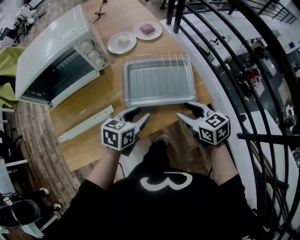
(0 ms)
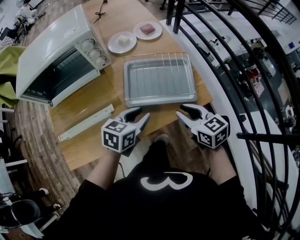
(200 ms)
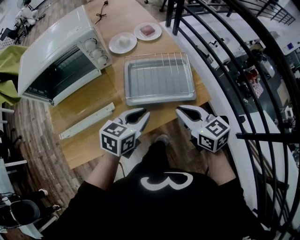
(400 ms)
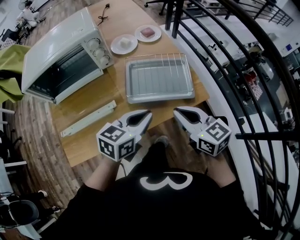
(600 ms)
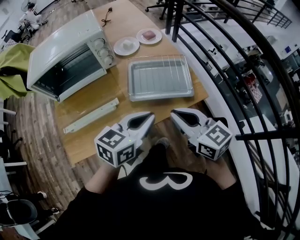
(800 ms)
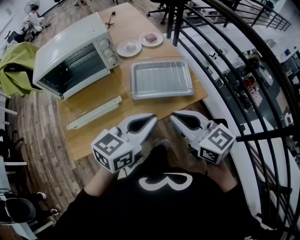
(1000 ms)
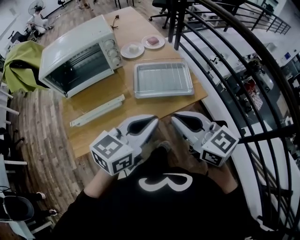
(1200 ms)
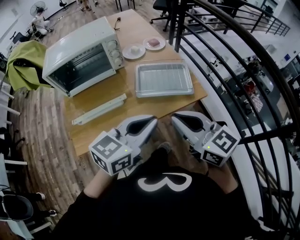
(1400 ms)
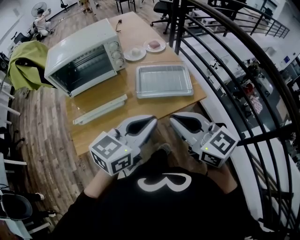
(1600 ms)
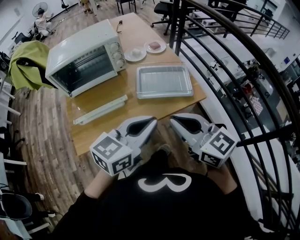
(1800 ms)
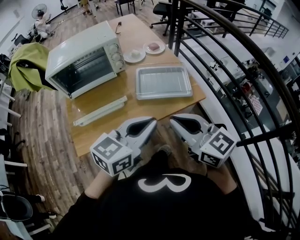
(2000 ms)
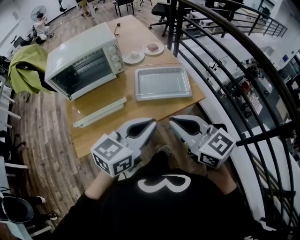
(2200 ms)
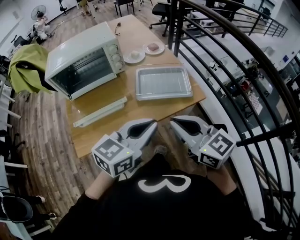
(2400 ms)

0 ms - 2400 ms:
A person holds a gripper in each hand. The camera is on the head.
0 ms - 1200 ms: Both grippers travel together upward and backward, about 25 cm. The left gripper swivels about 30 degrees, and closes; the right gripper turns by about 30 degrees, and closes up.
1200 ms - 2400 ms: The grippers stay close to where they were, moving slightly.

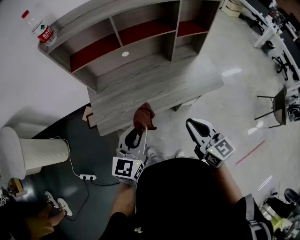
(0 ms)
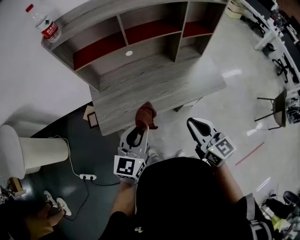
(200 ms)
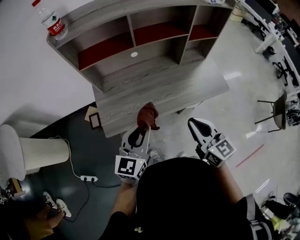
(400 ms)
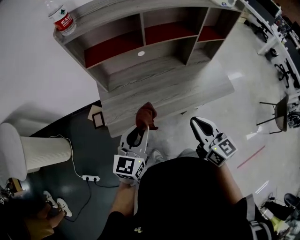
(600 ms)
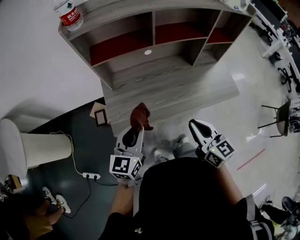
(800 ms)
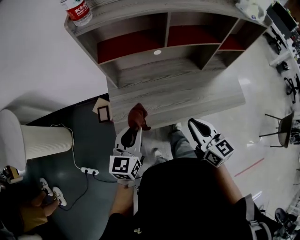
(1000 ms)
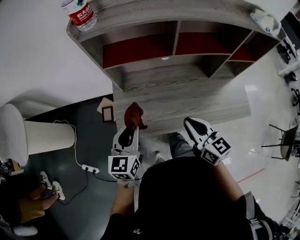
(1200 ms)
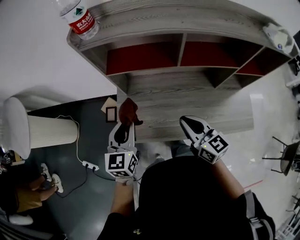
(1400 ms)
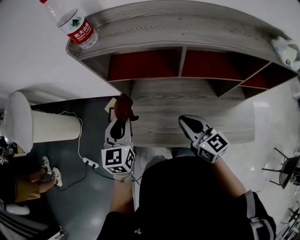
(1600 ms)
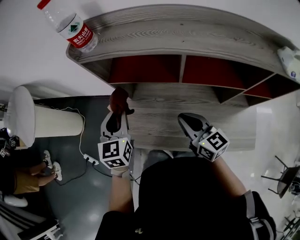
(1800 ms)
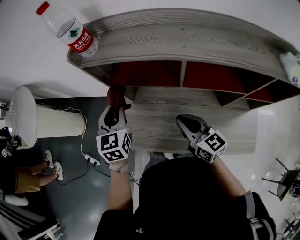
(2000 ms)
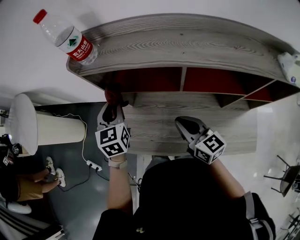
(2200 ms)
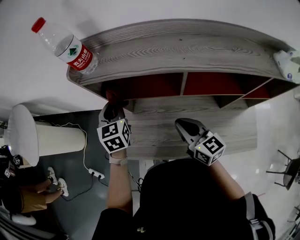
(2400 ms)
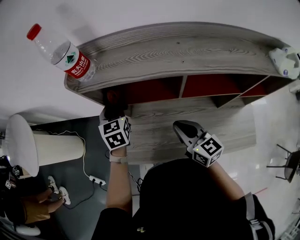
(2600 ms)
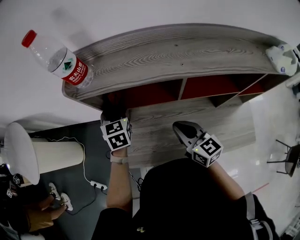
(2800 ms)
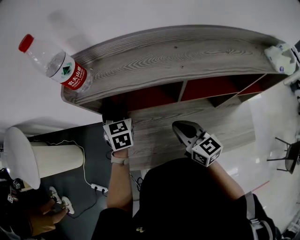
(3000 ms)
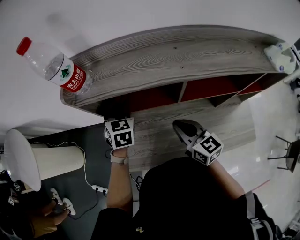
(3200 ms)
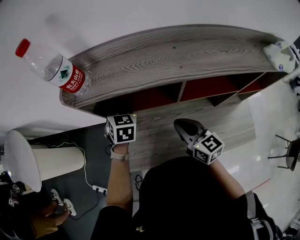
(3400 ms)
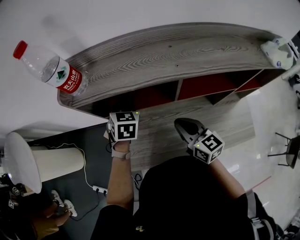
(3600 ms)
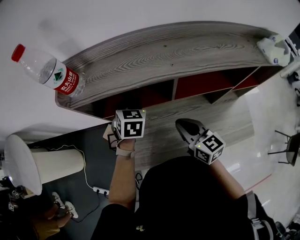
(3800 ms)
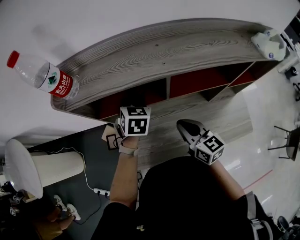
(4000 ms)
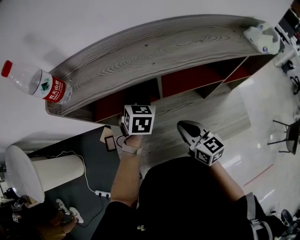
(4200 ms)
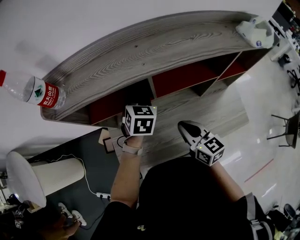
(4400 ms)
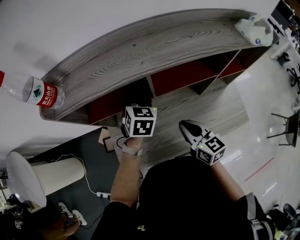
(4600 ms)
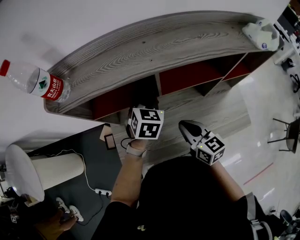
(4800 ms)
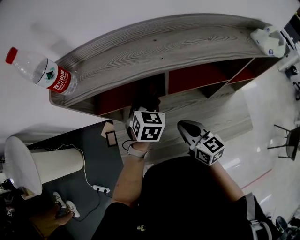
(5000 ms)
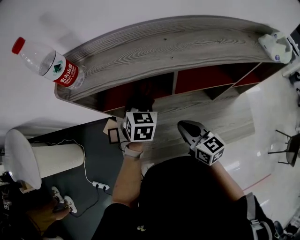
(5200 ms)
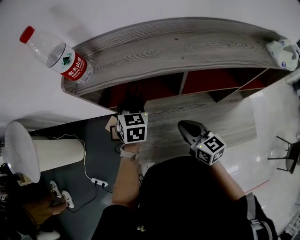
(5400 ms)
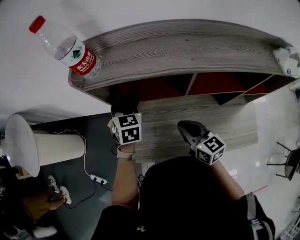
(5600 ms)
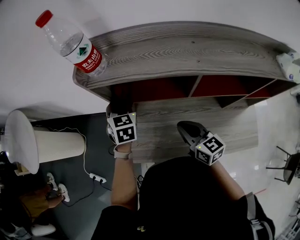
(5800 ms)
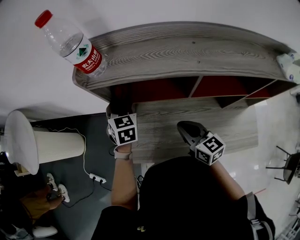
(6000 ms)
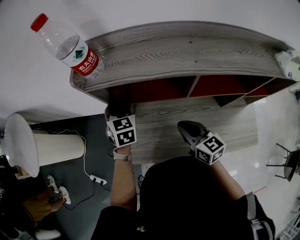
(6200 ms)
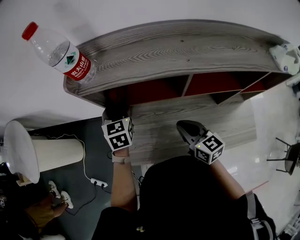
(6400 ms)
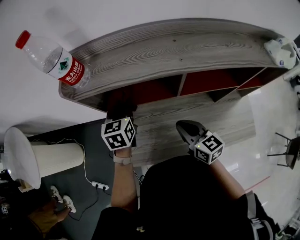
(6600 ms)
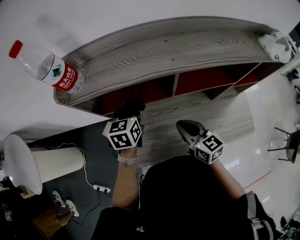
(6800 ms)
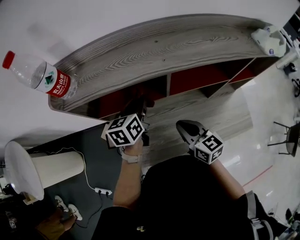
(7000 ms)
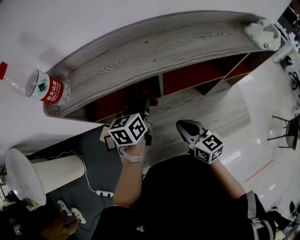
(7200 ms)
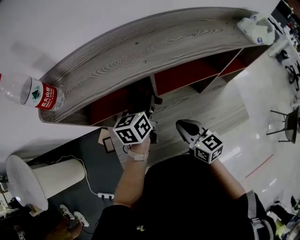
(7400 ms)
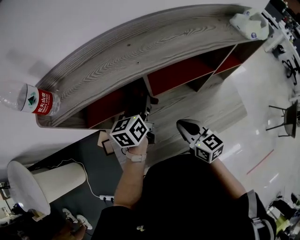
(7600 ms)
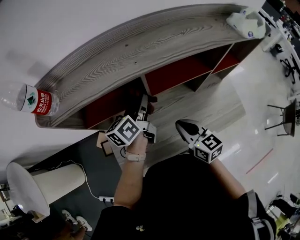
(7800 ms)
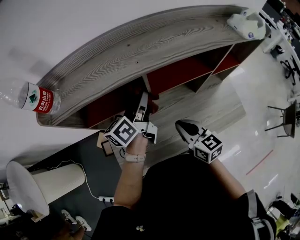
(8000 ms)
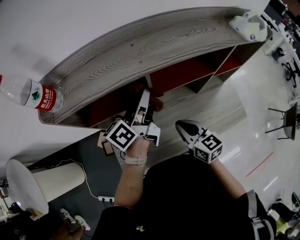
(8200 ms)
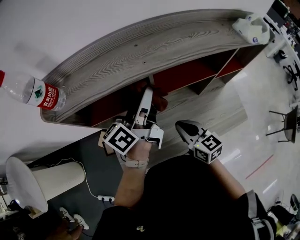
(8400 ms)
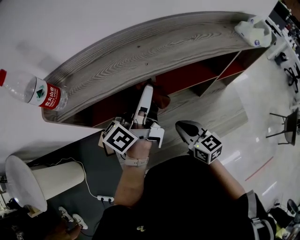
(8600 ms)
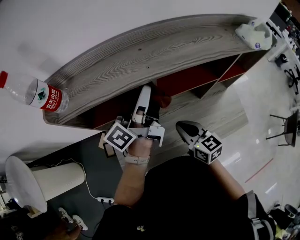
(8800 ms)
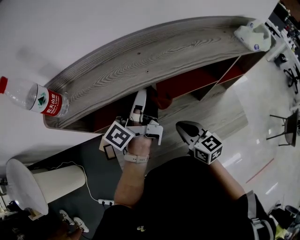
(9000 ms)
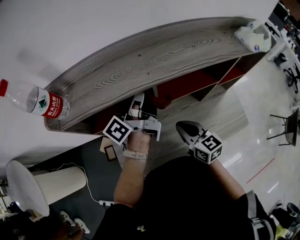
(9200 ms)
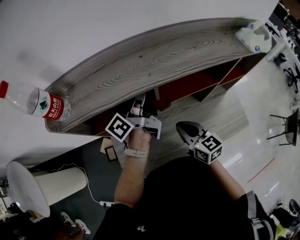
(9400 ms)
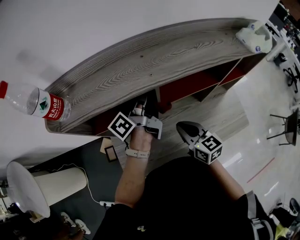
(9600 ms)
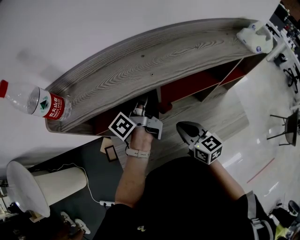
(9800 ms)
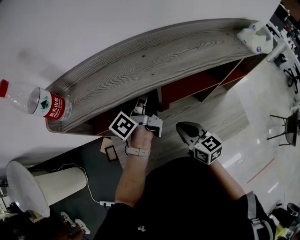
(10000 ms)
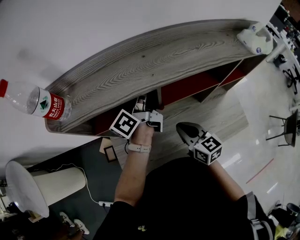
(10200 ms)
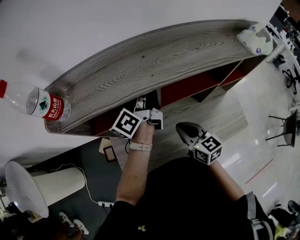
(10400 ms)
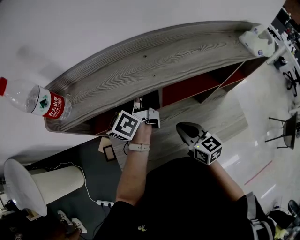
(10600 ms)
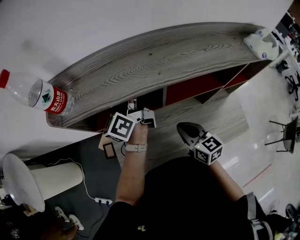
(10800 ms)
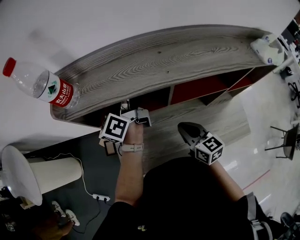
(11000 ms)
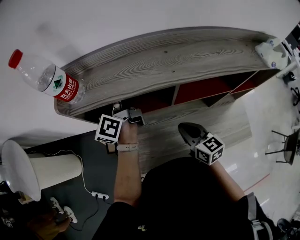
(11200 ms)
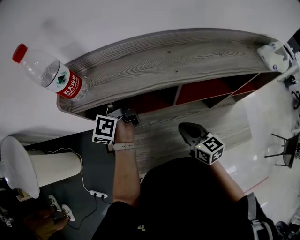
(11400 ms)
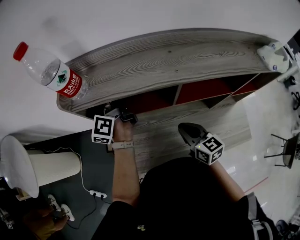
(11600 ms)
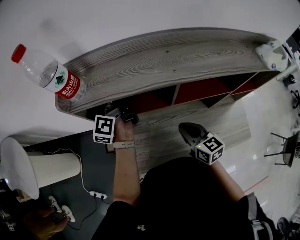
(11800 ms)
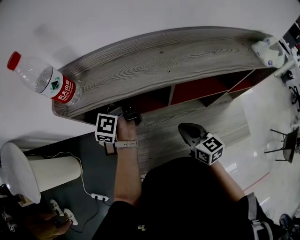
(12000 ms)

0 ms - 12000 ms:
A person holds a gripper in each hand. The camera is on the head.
0 ms - 1600 ms: The left gripper changes place by roughly 30 cm, and turns by approximately 40 degrees; the right gripper changes place by about 30 cm, and swivels about 30 degrees.
1600 ms - 3000 ms: The right gripper goes roughly 10 cm forward, while the left gripper heads forward, covering roughly 20 cm.
3000 ms - 4400 ms: The right gripper moves to the right and backward, roughly 10 cm; the left gripper travels to the right by about 20 cm, and rotates approximately 30 degrees.
4400 ms - 6000 ms: The right gripper goes approximately 10 cm to the left; the left gripper heads to the left, covering some 25 cm, and changes its angle by about 30 degrees.
6000 ms - 7600 ms: The left gripper shifts by approximately 25 cm, and turns by about 50 degrees; the right gripper ends up roughly 10 cm from where it was.
7600 ms - 9000 ms: The left gripper moves upward, roughly 15 cm, and tips its fingers upward by about 40 degrees.
9000 ms - 10400 ms: The left gripper shifts roughly 10 cm forward and downward.
10400 ms - 12000 ms: The left gripper shifts some 20 cm to the left, and turns by roughly 30 degrees.

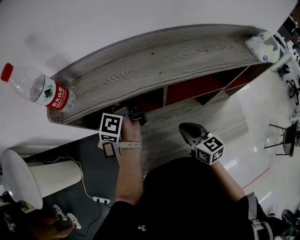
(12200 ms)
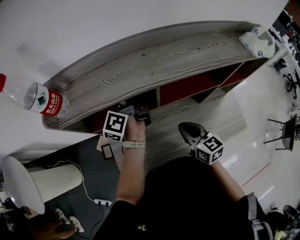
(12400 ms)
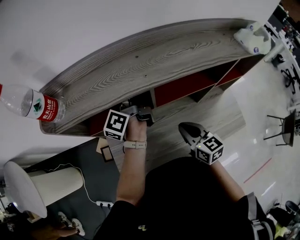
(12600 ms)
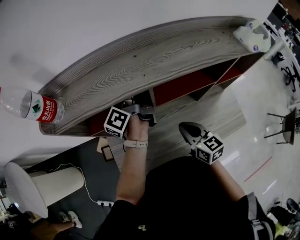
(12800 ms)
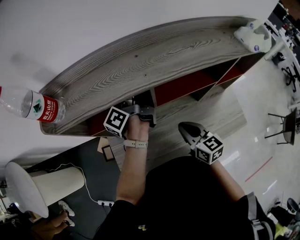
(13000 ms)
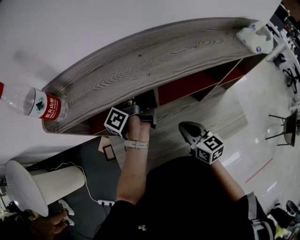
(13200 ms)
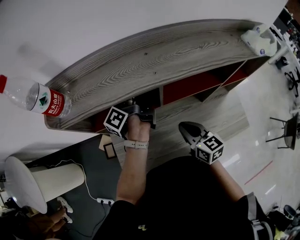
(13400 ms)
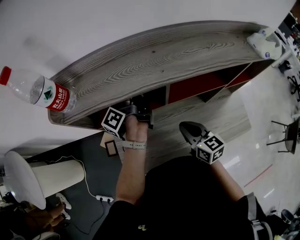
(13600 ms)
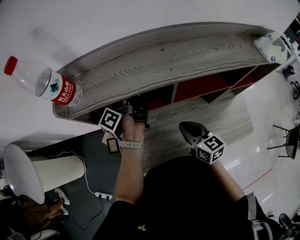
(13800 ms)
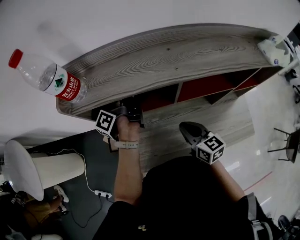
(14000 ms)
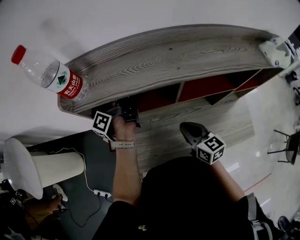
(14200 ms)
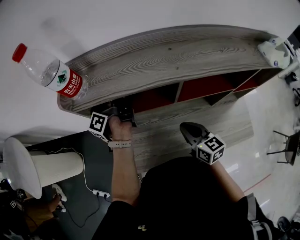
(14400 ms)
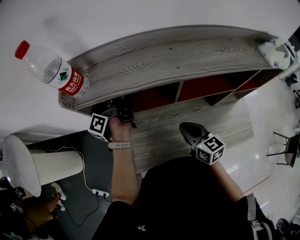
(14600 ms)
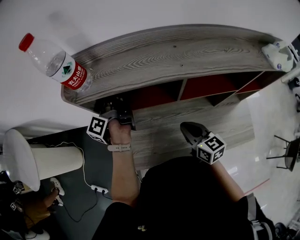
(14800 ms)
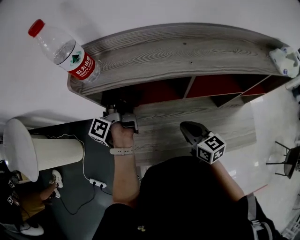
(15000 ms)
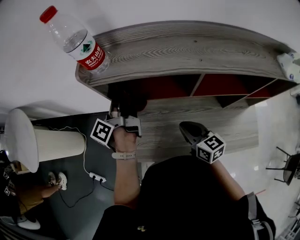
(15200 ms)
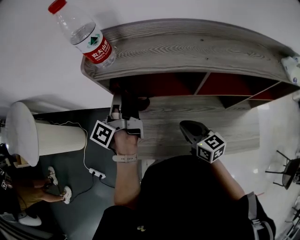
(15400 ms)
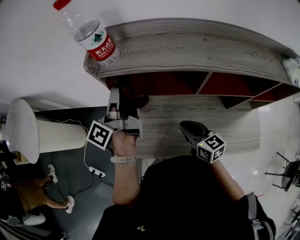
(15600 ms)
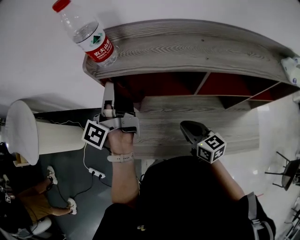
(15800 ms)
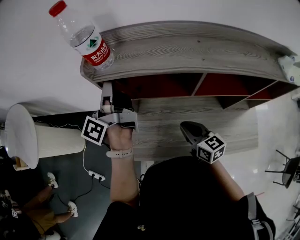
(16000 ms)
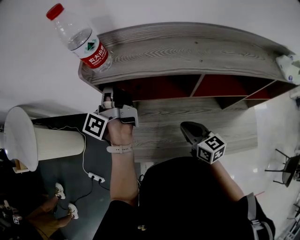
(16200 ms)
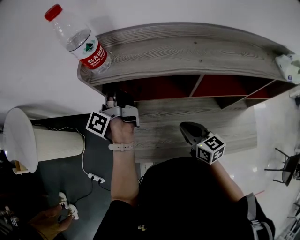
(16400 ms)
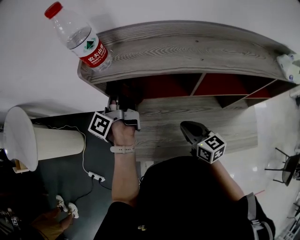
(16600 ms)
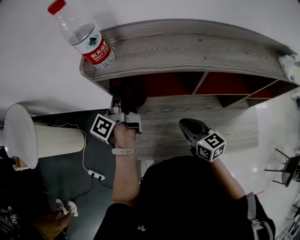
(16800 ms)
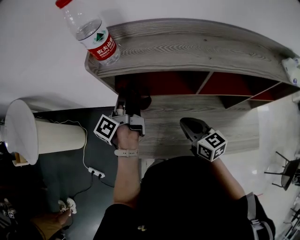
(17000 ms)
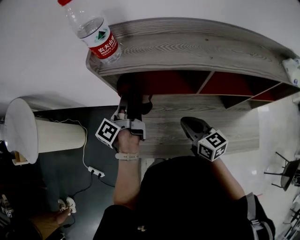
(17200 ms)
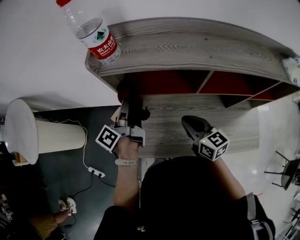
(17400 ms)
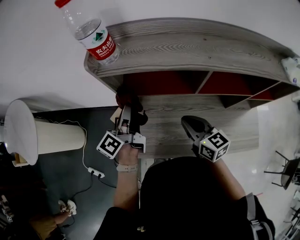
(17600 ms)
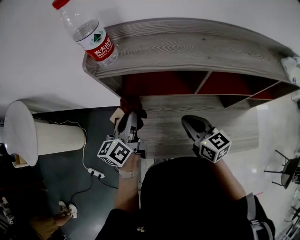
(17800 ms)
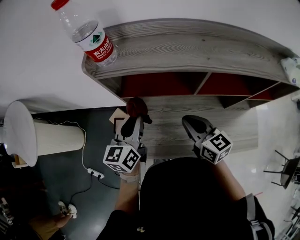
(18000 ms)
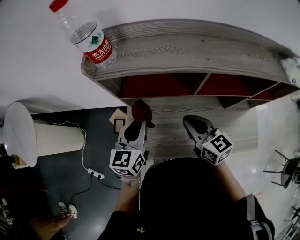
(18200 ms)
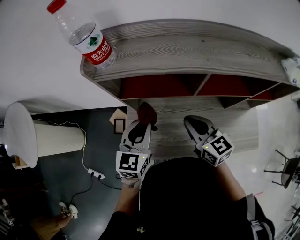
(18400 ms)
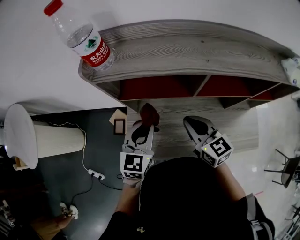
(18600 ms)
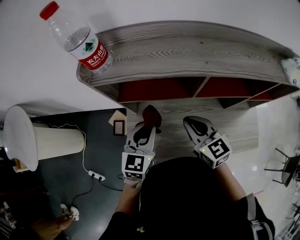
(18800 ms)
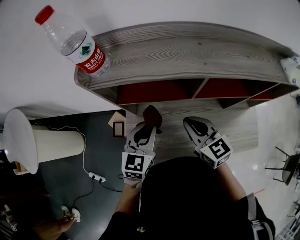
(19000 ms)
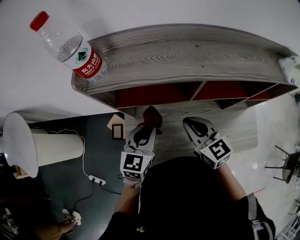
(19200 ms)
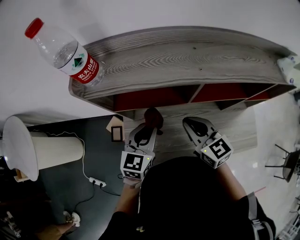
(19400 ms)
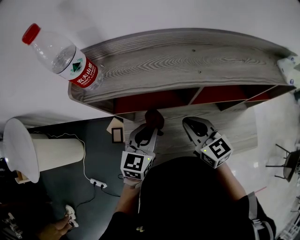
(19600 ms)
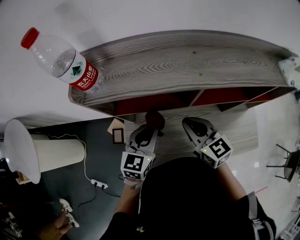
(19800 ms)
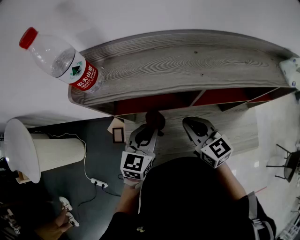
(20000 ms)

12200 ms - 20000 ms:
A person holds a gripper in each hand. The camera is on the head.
12200 ms - 13800 ms: The left gripper reaches about 10 cm to the right, then returns, and rotates roughly 30 degrees.
13800 ms - 15400 ms: The left gripper goes approximately 15 cm to the left and backward. The right gripper is displaced to the left by roughly 10 cm.
15400 ms - 16800 ms: The left gripper travels upward and back again, approximately 10 cm each way.
16800 ms - 18400 ms: The right gripper heads upward, covering about 5 cm. The left gripper heads backward and to the right, covering some 15 cm, and twists approximately 70 degrees clockwise, seen from behind.
18400 ms - 20000 ms: The left gripper changes place by some 5 cm.

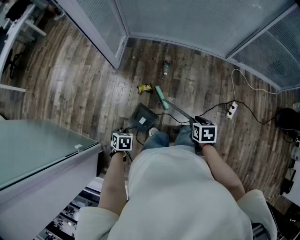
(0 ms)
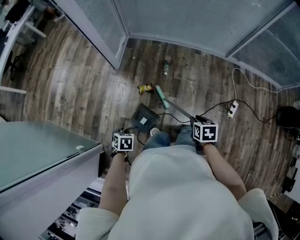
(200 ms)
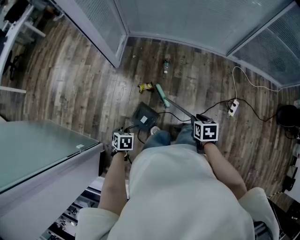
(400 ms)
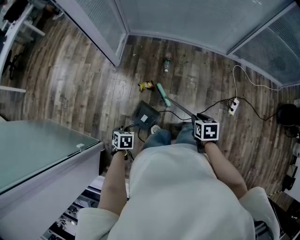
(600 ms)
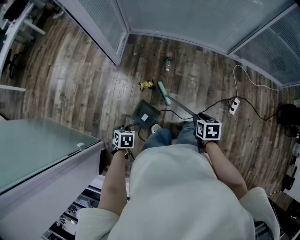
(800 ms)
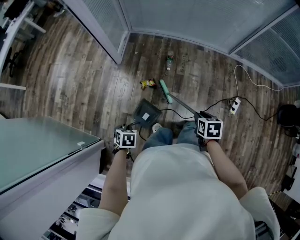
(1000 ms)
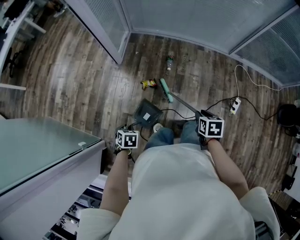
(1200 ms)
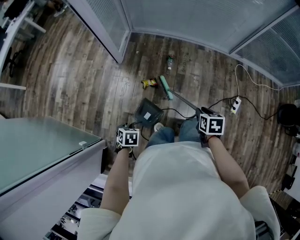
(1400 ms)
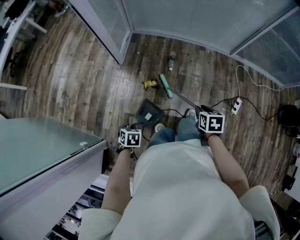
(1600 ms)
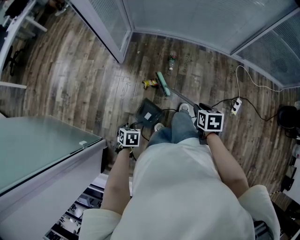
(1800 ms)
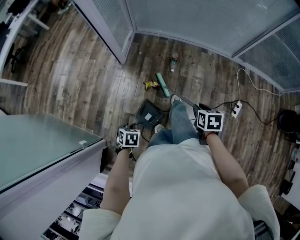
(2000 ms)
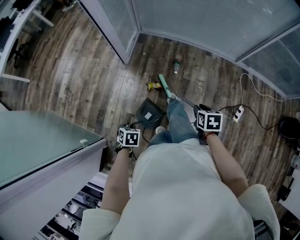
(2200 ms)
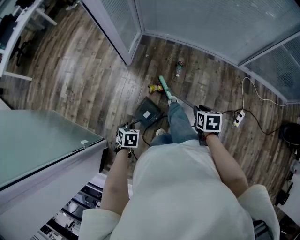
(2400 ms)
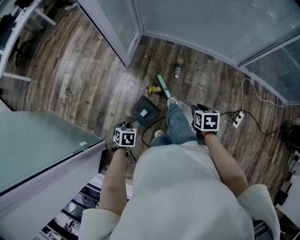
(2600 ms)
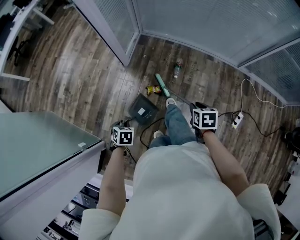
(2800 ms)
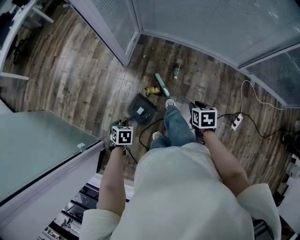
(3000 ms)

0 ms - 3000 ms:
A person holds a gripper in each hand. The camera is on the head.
1600 ms - 3000 ms: The left gripper shifts by approximately 10 cm.
